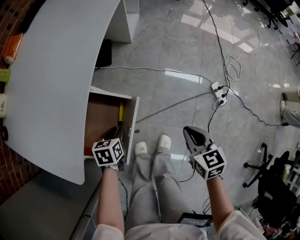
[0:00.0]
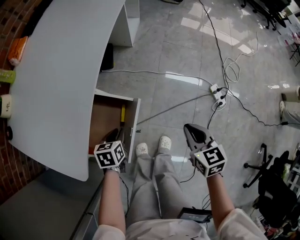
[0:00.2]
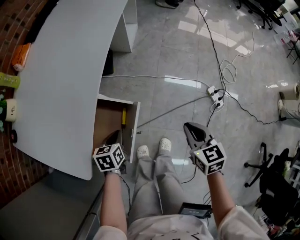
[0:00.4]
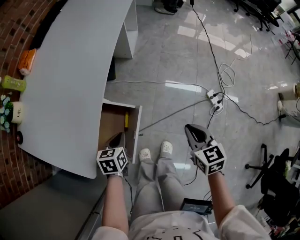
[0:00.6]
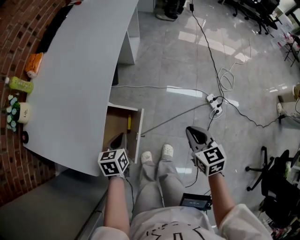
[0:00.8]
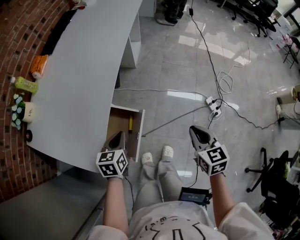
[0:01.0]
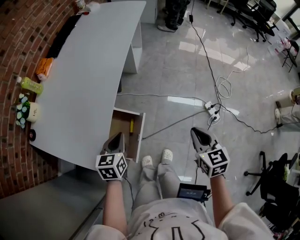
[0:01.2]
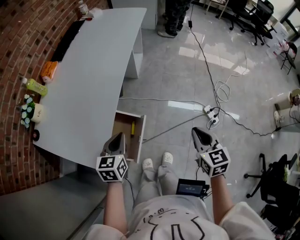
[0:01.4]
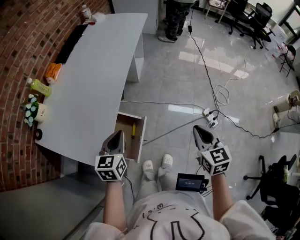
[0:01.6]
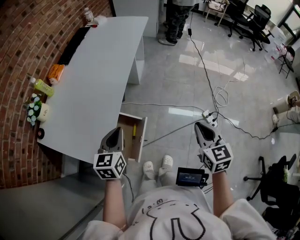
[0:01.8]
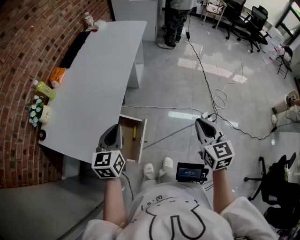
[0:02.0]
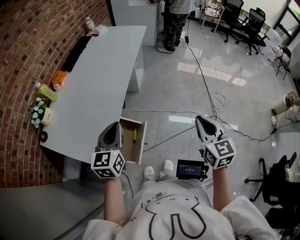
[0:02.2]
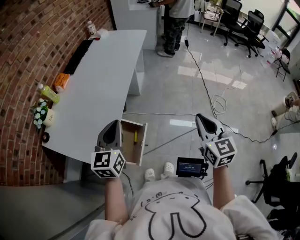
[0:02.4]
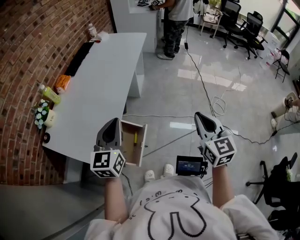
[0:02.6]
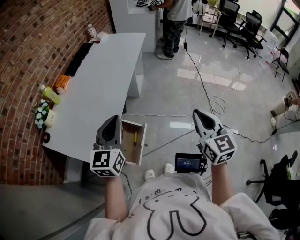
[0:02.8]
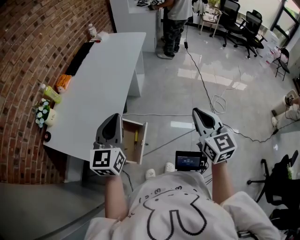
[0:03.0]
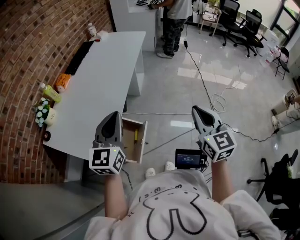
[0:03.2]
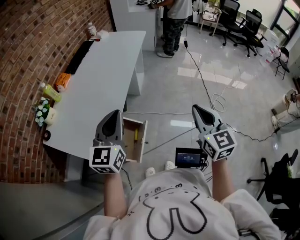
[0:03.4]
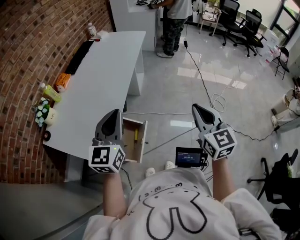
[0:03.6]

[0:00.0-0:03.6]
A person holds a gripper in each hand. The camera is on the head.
0:00.0 to 0:01.8: The grippers both shift upward by roughly 35 cm. The right gripper turns by some 20 degrees. Meanwhile the left gripper tilts its fingers roughly 30 degrees upward, and closes its fingers.
0:01.8 to 0:03.6: Both grippers move upward, roughly 15 cm. The left gripper changes its angle by approximately 30 degrees.

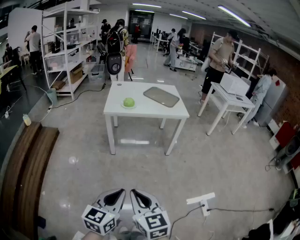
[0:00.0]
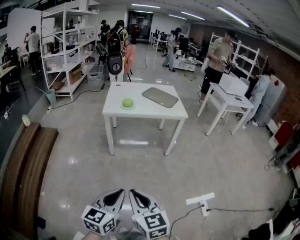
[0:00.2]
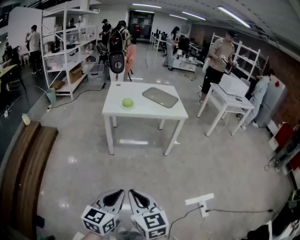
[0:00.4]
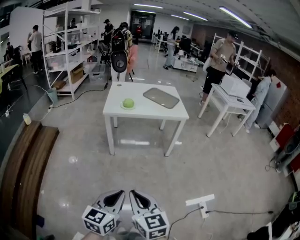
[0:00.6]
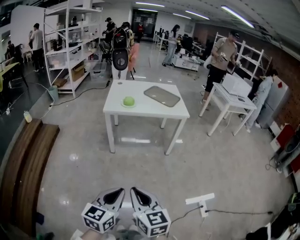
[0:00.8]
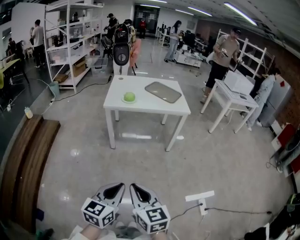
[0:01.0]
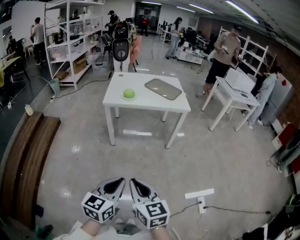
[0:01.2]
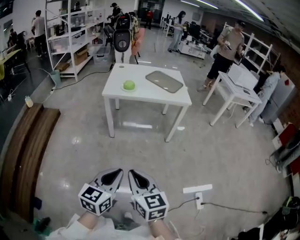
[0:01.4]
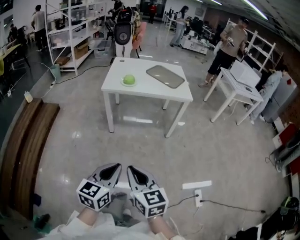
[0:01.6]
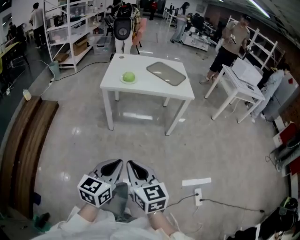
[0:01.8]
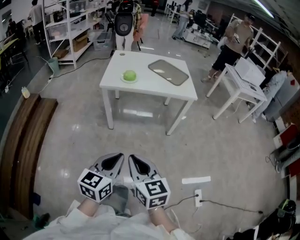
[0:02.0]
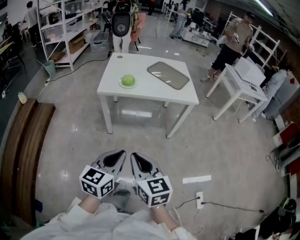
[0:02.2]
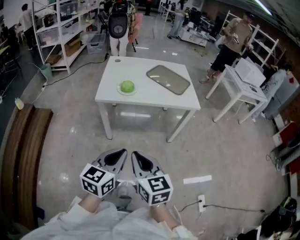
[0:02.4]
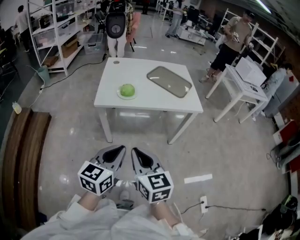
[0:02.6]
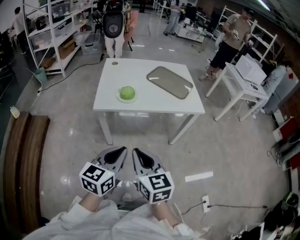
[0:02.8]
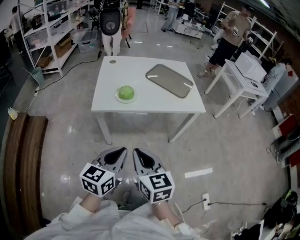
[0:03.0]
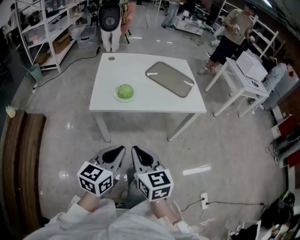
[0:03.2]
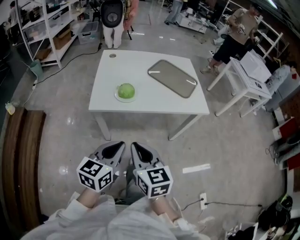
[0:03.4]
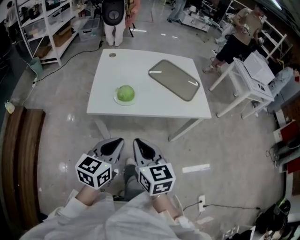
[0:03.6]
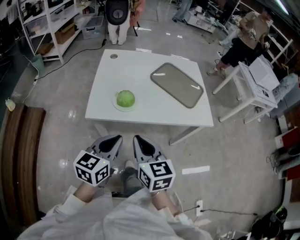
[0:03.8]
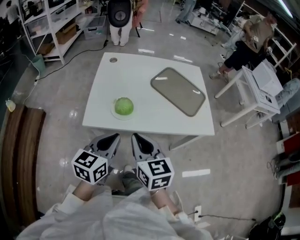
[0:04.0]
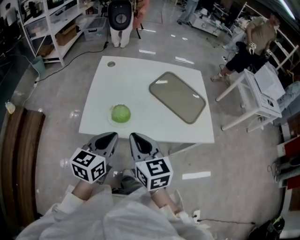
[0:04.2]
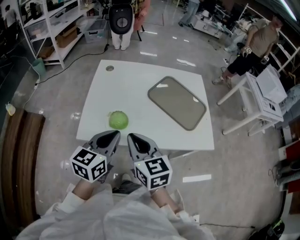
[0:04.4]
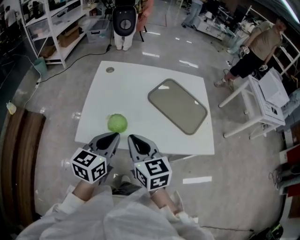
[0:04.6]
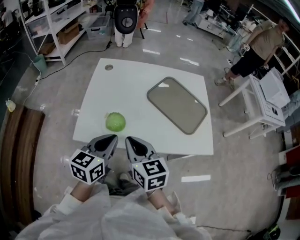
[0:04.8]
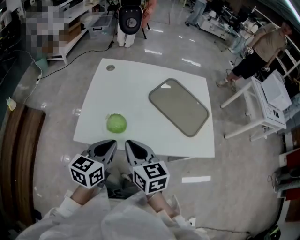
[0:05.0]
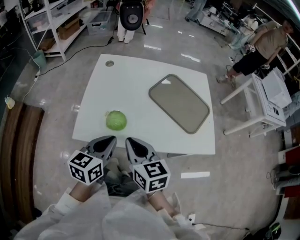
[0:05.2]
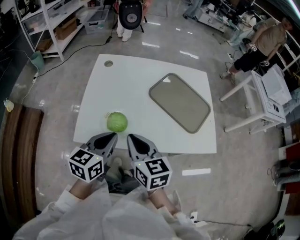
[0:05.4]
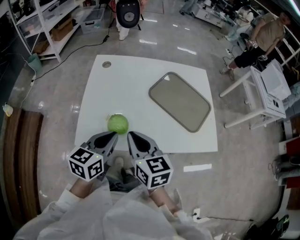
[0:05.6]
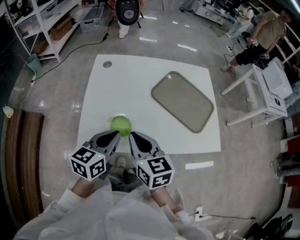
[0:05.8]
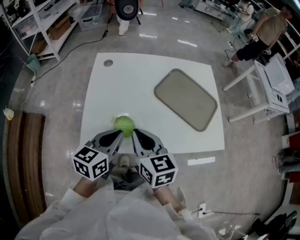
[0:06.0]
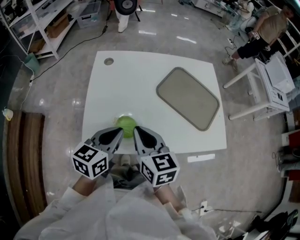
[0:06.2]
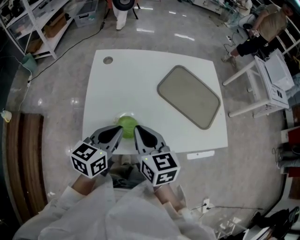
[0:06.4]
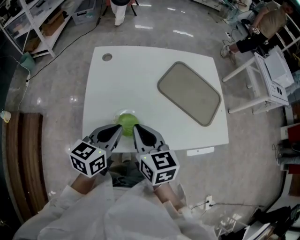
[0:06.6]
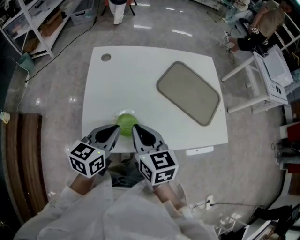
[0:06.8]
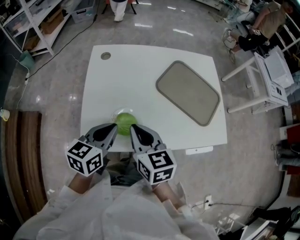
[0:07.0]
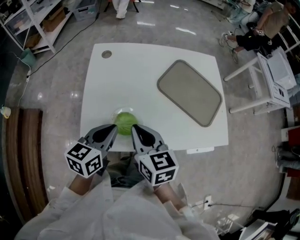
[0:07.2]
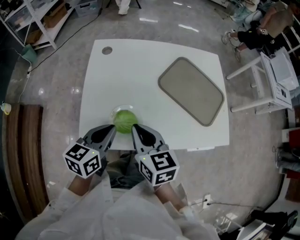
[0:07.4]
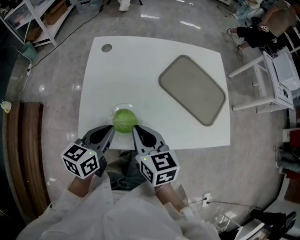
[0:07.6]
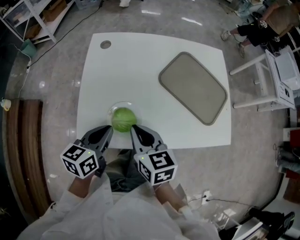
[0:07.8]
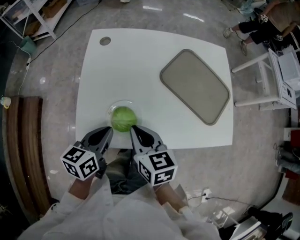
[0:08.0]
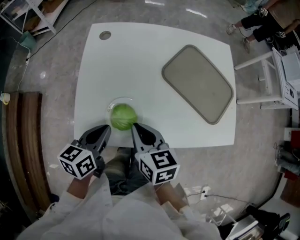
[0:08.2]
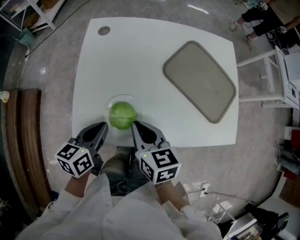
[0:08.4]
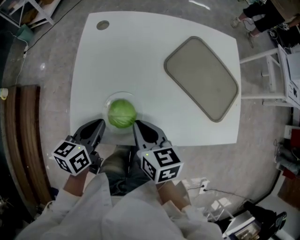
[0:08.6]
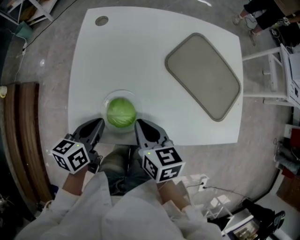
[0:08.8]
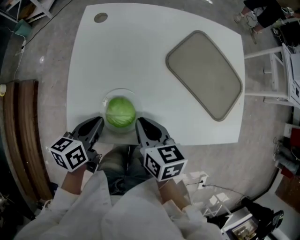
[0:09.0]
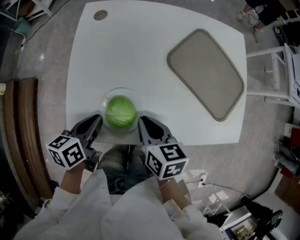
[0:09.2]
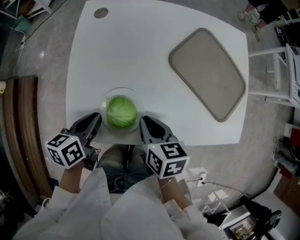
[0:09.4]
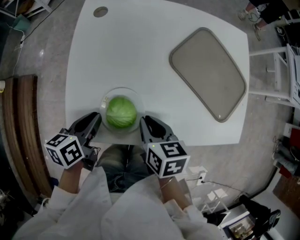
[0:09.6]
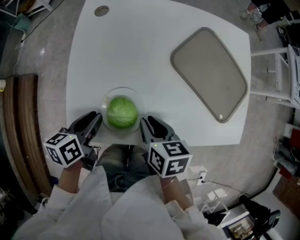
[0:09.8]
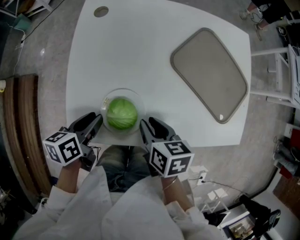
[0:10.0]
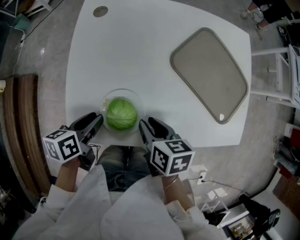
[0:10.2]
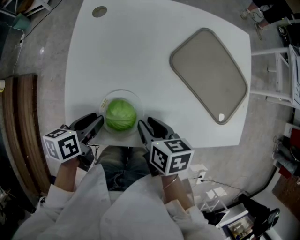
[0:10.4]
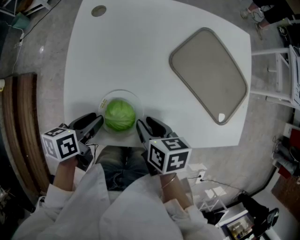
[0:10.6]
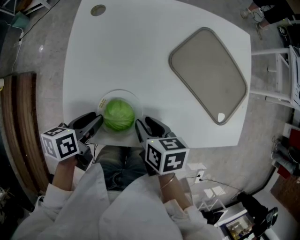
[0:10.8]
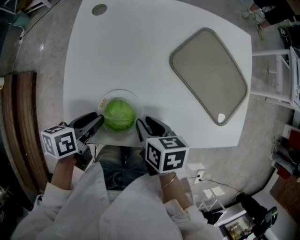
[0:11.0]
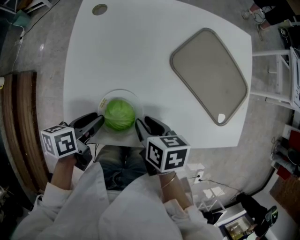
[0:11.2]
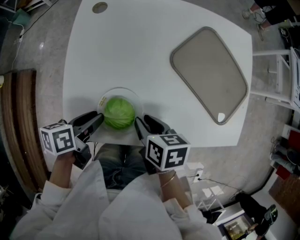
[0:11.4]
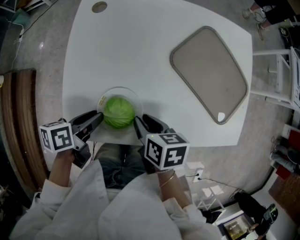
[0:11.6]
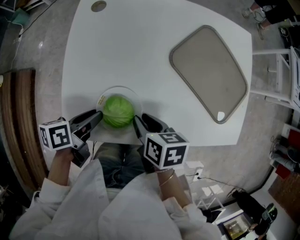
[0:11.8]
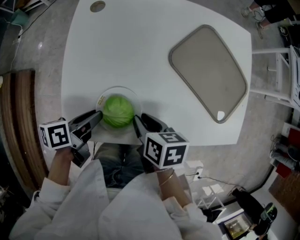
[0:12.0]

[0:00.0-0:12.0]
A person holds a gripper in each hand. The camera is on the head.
0:00.0 to 0:01.6: Both grippers travel together forward and to the right, about 10 cm.
0:01.6 to 0:03.0: The two grippers go roughly 35 cm forward.
0:03.0 to 0:04.4: Both grippers travel together forward, some 35 cm.
0:04.4 to 0:06.0: The two grippers go some 10 cm forward.
0:06.0 to 0:07.6: The right gripper changes place by roughly 5 cm; the left gripper changes place by about 5 cm.
0:07.6 to 0:09.0: The two grippers go some 10 cm downward.
0:09.0 to 0:10.4: The left gripper opens its fingers. The right gripper opens its fingers.
0:10.4 to 0:12.0: There are only small adjustments of the grippers.

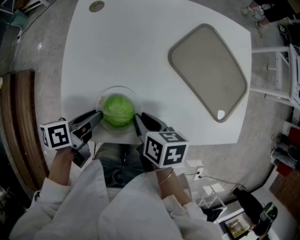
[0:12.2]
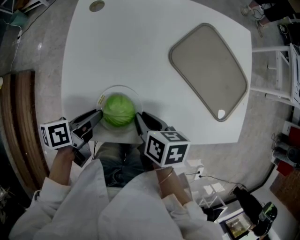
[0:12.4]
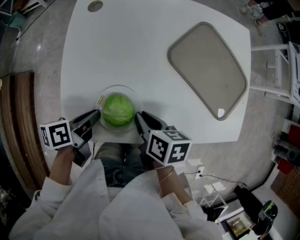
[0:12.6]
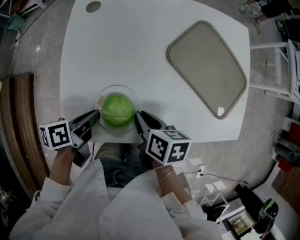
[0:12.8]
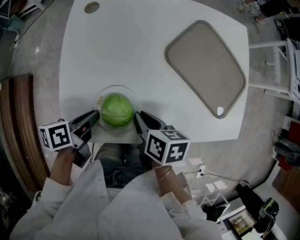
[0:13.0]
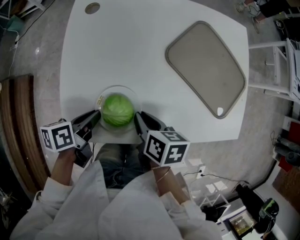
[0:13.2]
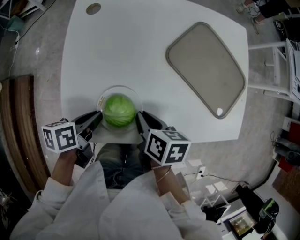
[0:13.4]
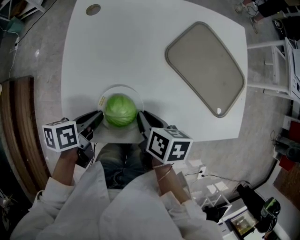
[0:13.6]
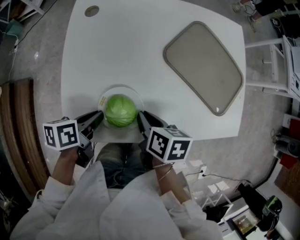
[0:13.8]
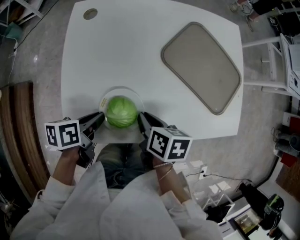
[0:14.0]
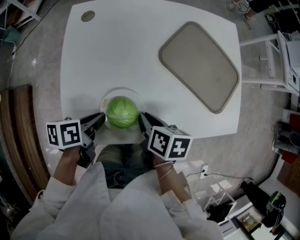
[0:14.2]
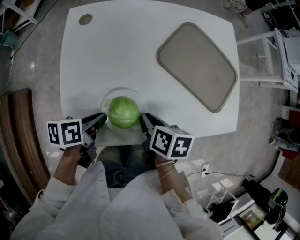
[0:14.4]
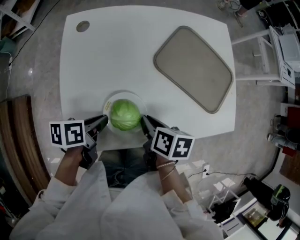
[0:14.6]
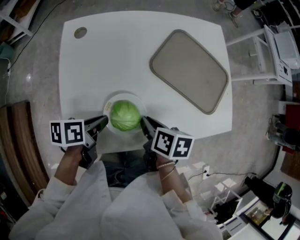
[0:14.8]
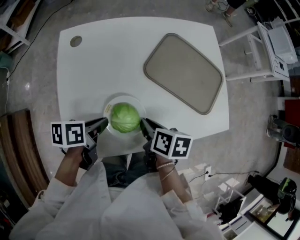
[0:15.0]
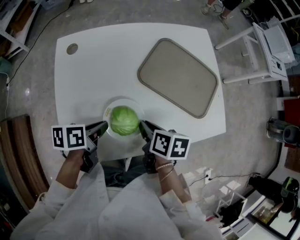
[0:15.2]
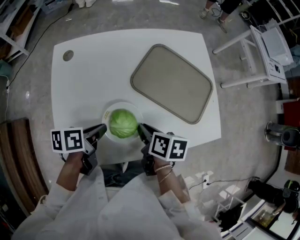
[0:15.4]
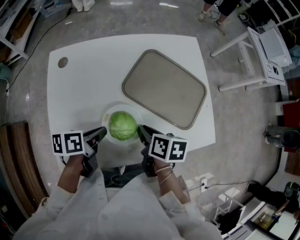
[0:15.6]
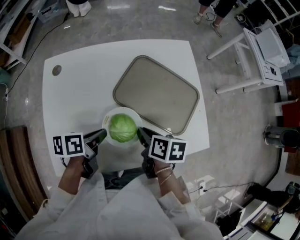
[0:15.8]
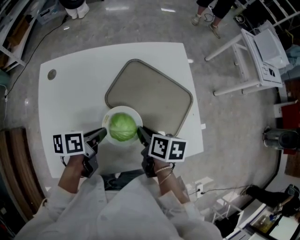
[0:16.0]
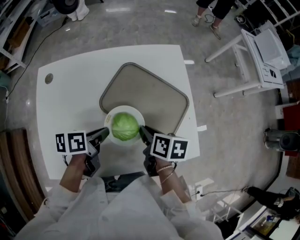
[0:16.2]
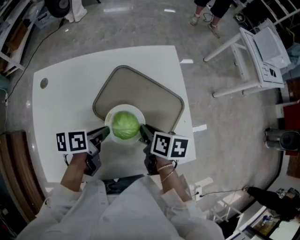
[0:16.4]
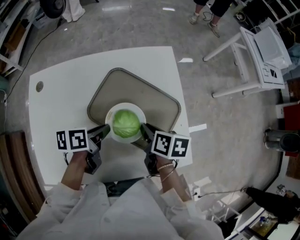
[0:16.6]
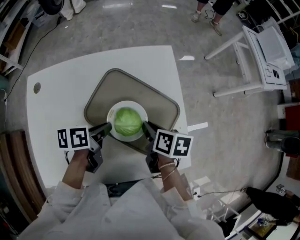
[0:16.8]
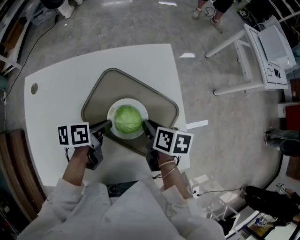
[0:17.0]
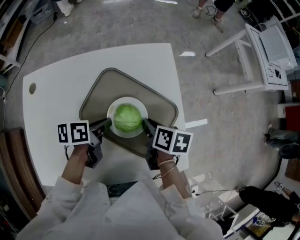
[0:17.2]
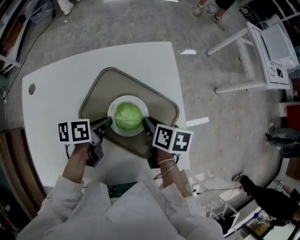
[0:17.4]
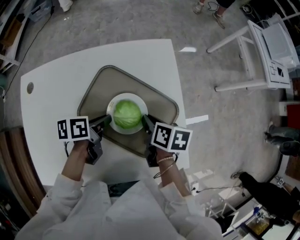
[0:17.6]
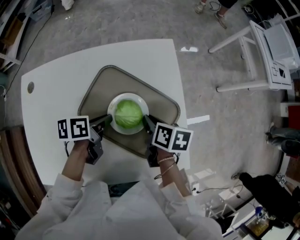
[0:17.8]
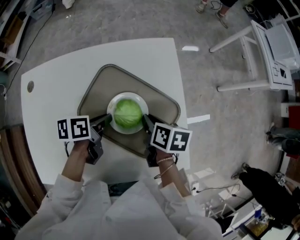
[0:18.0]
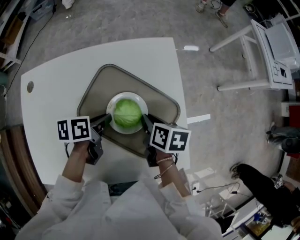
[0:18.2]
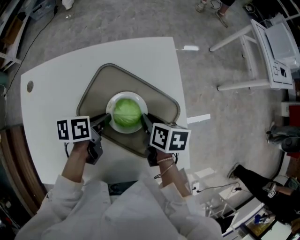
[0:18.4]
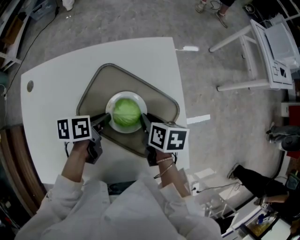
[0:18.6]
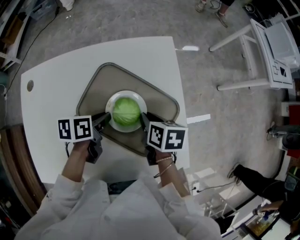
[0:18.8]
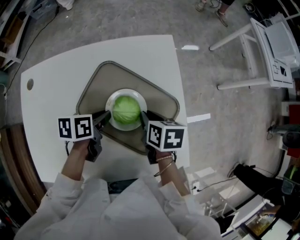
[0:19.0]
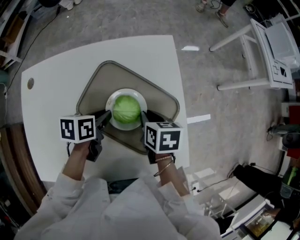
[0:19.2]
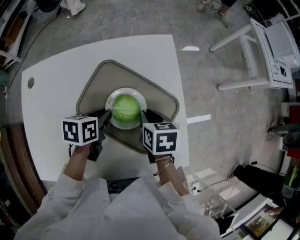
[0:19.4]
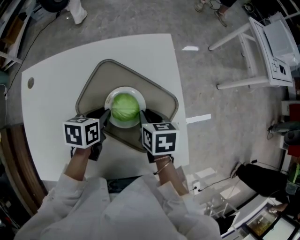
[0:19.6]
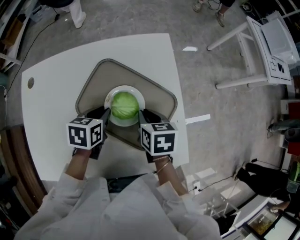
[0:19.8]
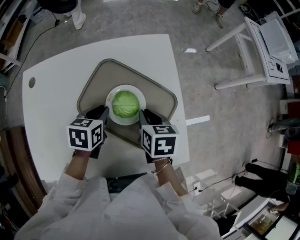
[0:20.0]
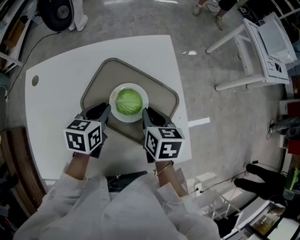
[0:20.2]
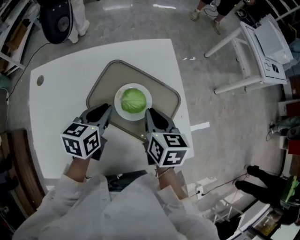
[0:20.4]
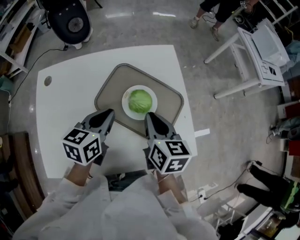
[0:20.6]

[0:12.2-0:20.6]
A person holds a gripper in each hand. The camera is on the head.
0:12.2 to 0:13.6: The left gripper closes.
0:13.6 to 0:15.0: The right gripper moves roughly 5 cm. Meanwhile the left gripper moves forward, some 5 cm.
0:15.0 to 0:16.4: The grippers both shift to the right and forward by approximately 25 cm.
0:16.4 to 0:17.8: Both grippers travel together forward, to the right and downward, some 10 cm.
0:17.8 to 0:19.2: The grippers stay close to where they were, moving slightly.
0:19.2 to 0:20.6: The grippers both shift upward and backward by some 15 cm. The left gripper rotates some 30 degrees; the right gripper rotates approximately 30 degrees.
